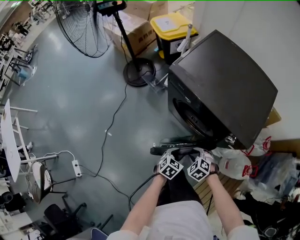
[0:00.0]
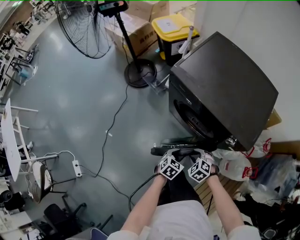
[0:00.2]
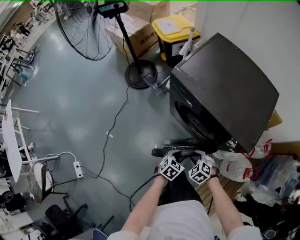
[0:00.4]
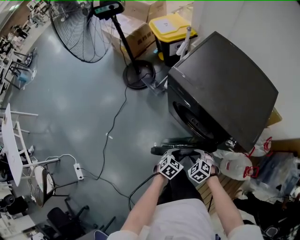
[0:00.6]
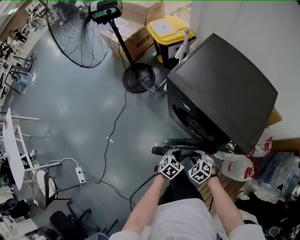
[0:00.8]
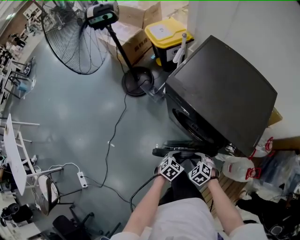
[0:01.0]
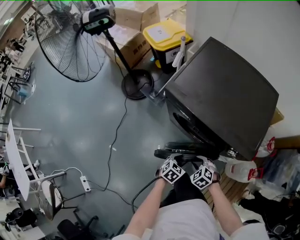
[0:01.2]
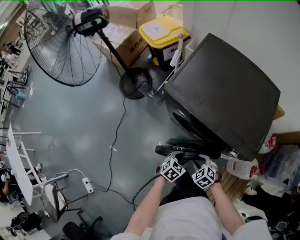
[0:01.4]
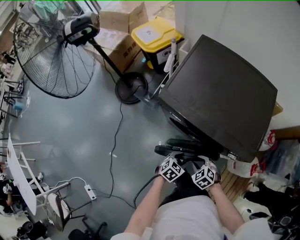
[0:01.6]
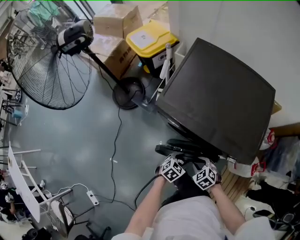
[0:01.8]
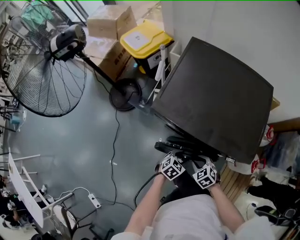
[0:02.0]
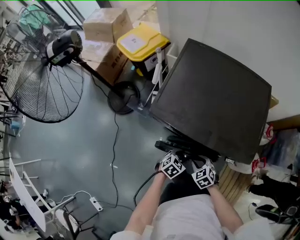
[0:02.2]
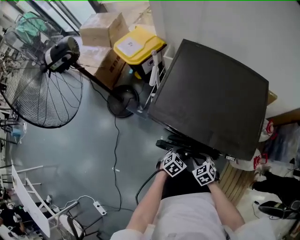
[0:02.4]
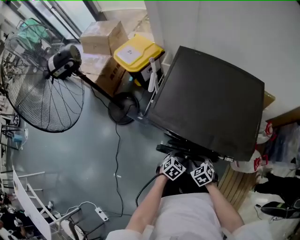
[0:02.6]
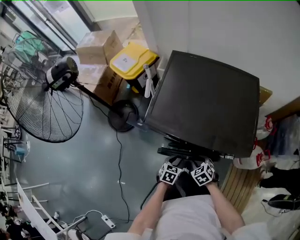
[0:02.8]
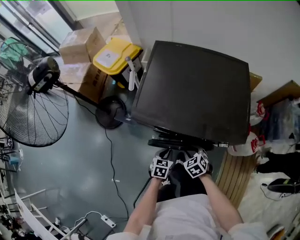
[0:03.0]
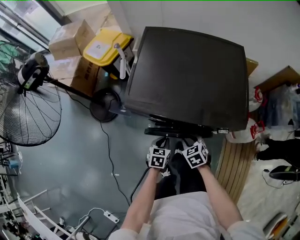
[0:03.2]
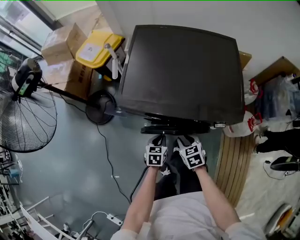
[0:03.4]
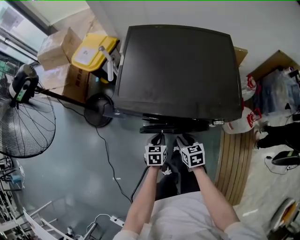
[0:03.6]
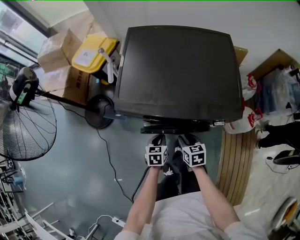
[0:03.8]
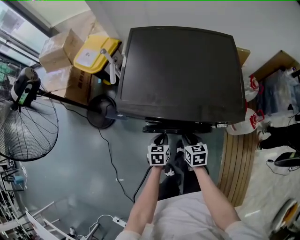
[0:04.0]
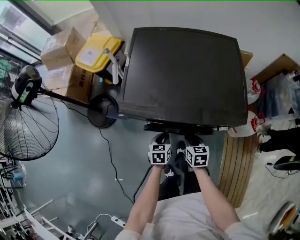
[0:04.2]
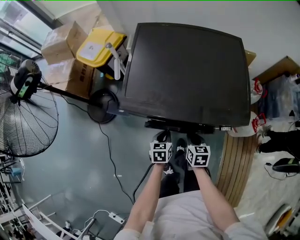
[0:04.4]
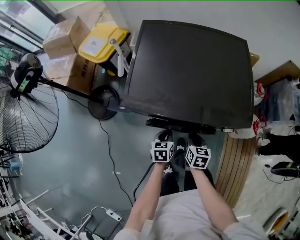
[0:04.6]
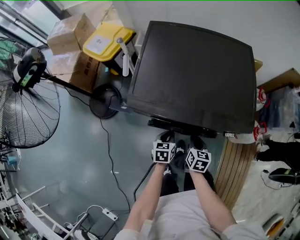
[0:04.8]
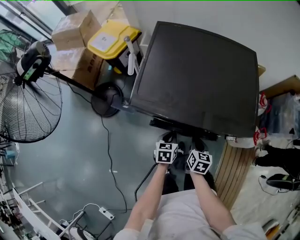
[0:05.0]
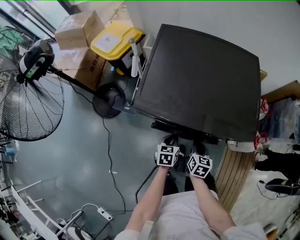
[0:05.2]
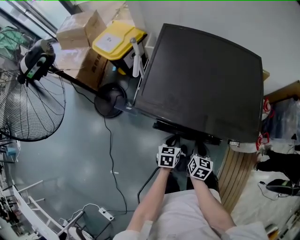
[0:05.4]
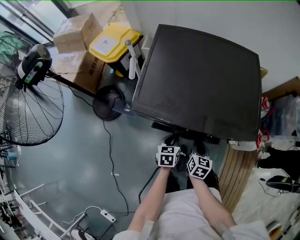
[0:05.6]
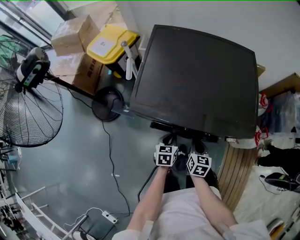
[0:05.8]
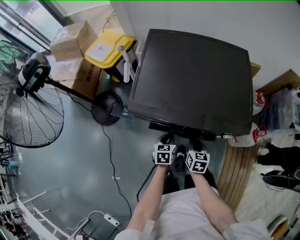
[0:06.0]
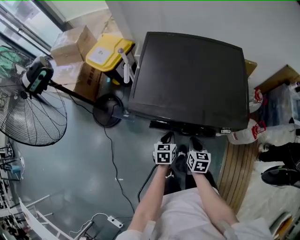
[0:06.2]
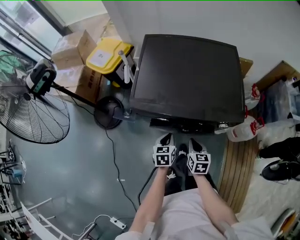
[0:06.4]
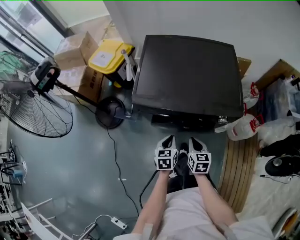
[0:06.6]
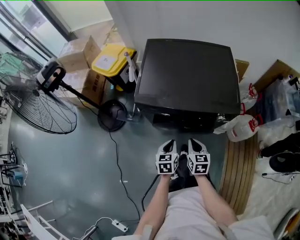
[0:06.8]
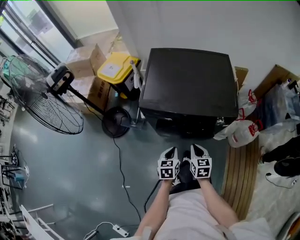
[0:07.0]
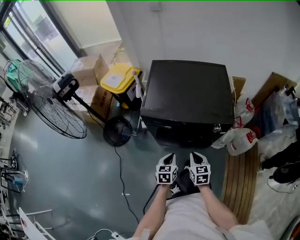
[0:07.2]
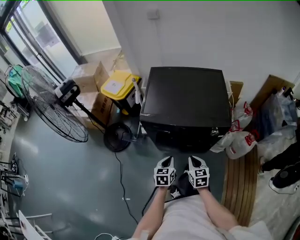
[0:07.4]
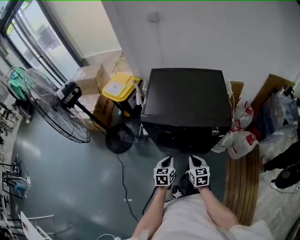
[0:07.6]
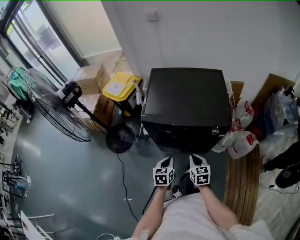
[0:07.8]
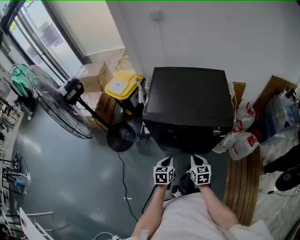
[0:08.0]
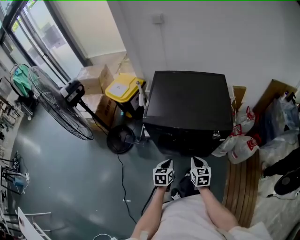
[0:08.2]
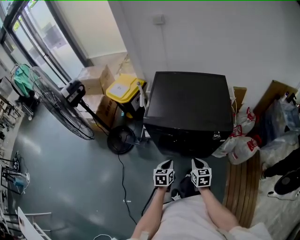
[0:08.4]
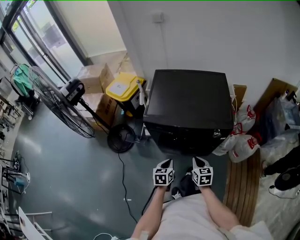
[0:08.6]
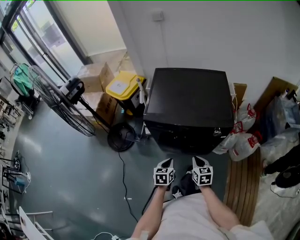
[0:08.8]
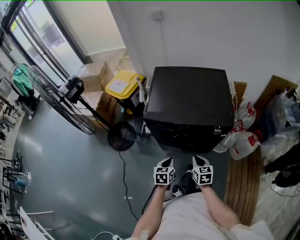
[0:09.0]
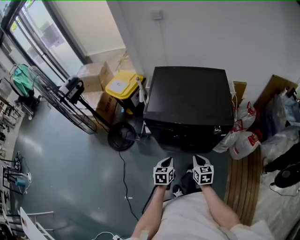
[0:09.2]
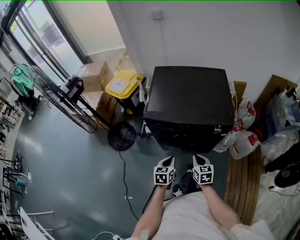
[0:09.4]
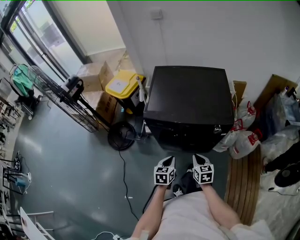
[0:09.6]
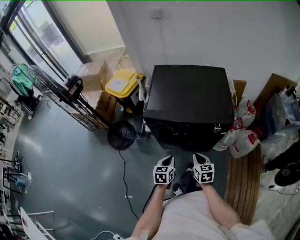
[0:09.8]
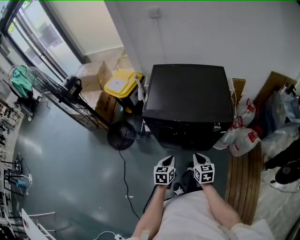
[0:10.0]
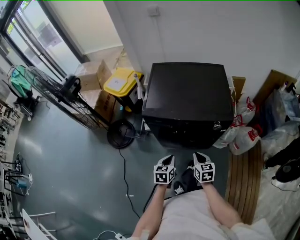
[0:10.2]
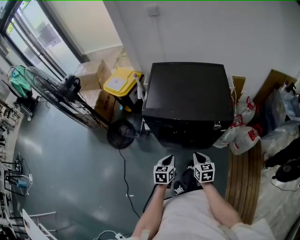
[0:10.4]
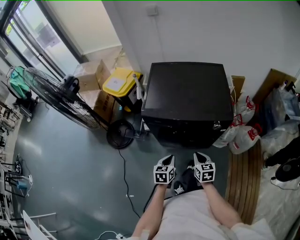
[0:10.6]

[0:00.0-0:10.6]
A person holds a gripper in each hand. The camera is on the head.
0:00.0 to 0:01.6: Both grippers move forward, about 10 cm. The right gripper rotates some 20 degrees.
0:01.6 to 0:03.0: The left gripper travels forward and to the left by some 10 cm, and closes its fingers. Meanwhile the right gripper moves forward, roughly 10 cm, and rotates some 30 degrees.
0:03.0 to 0:04.6: The right gripper rolls clockwise, seen from behind, by some 40 degrees, and closes.
0:04.6 to 0:06.0: The grippers make only small movements.
0:06.0 to 0:07.6: The right gripper heads backward and upward, covering approximately 20 cm. Meanwhile the left gripper is displaced upward and backward by roughly 20 cm.
0:07.6 to 0:09.0: There are only small adjustments of the grippers.
0:09.0 to 0:10.6: Both grippers stay put.

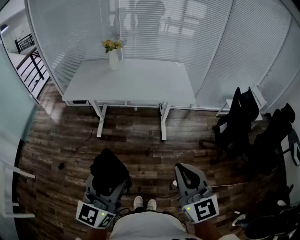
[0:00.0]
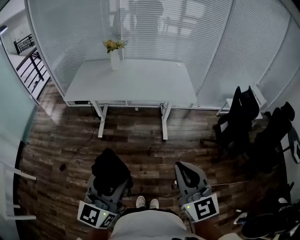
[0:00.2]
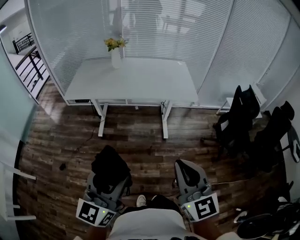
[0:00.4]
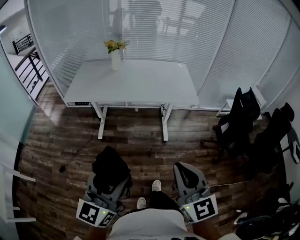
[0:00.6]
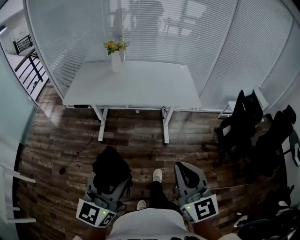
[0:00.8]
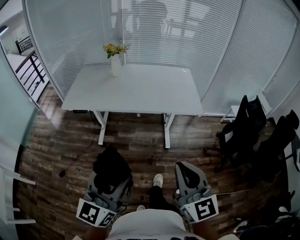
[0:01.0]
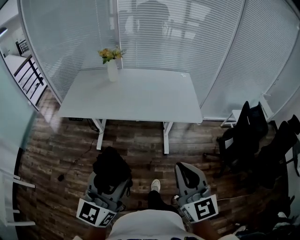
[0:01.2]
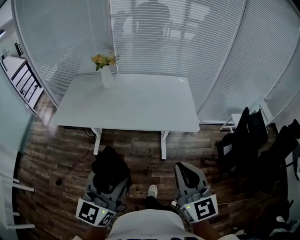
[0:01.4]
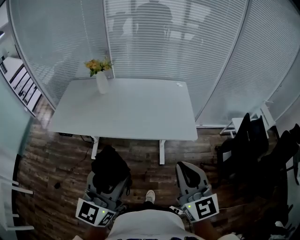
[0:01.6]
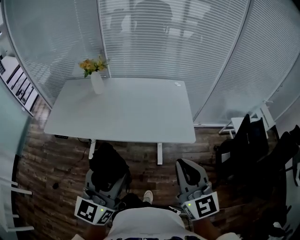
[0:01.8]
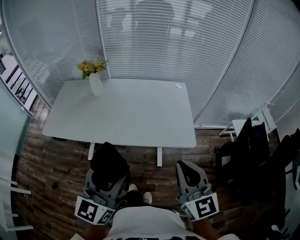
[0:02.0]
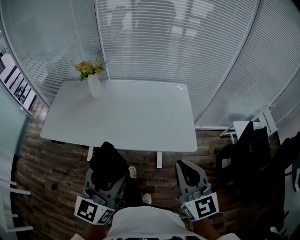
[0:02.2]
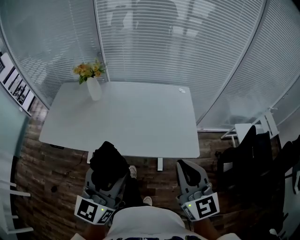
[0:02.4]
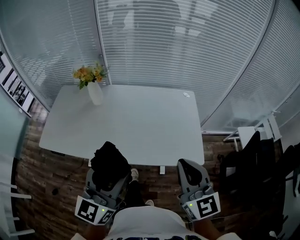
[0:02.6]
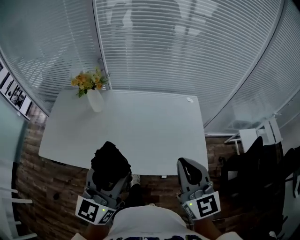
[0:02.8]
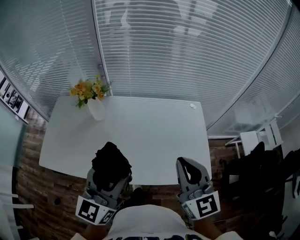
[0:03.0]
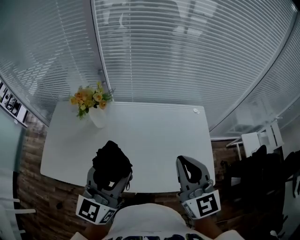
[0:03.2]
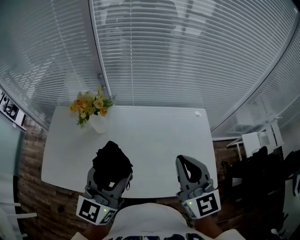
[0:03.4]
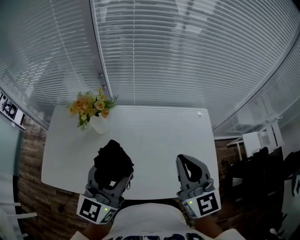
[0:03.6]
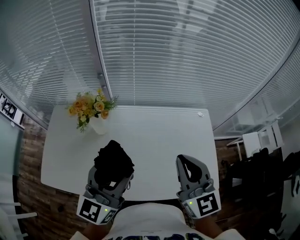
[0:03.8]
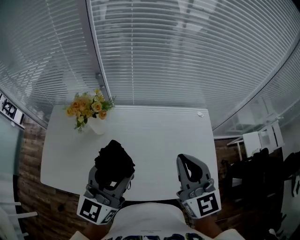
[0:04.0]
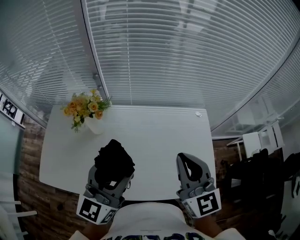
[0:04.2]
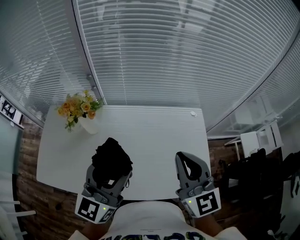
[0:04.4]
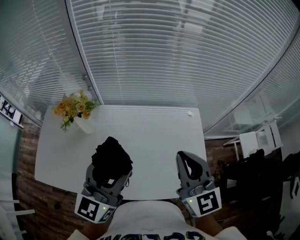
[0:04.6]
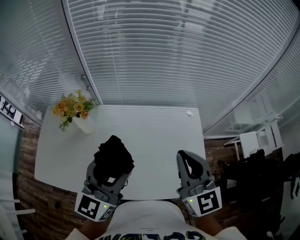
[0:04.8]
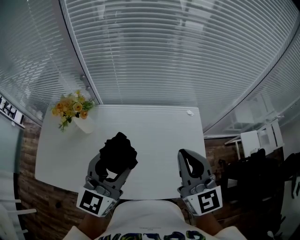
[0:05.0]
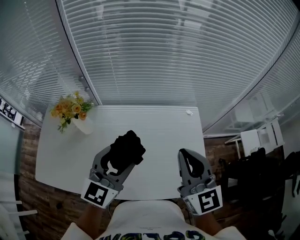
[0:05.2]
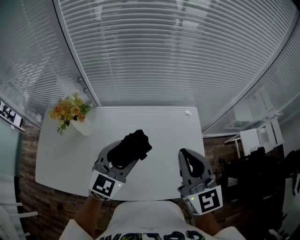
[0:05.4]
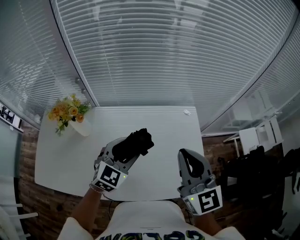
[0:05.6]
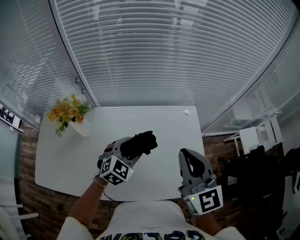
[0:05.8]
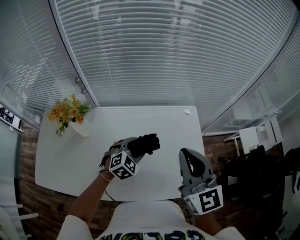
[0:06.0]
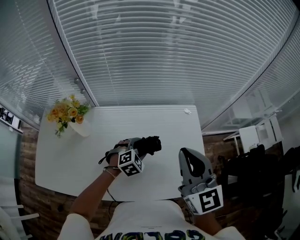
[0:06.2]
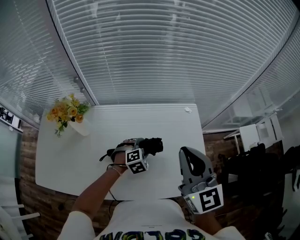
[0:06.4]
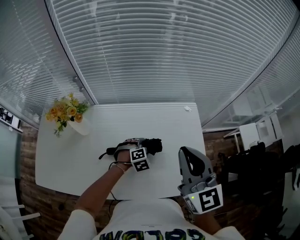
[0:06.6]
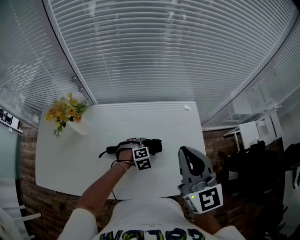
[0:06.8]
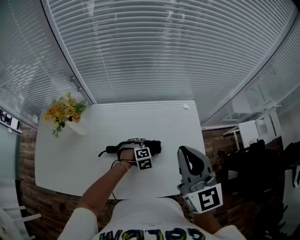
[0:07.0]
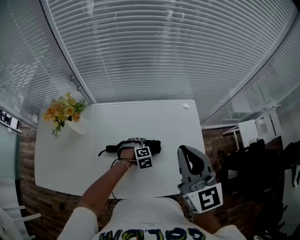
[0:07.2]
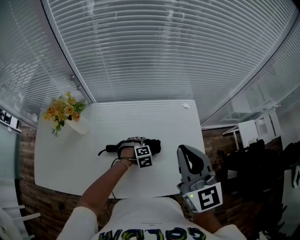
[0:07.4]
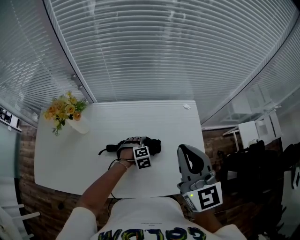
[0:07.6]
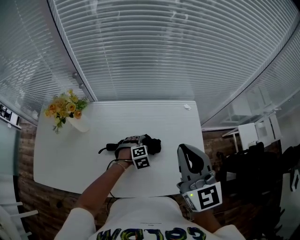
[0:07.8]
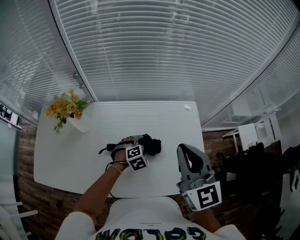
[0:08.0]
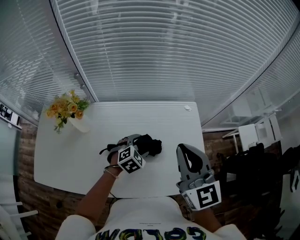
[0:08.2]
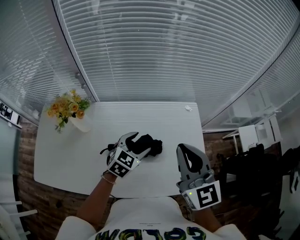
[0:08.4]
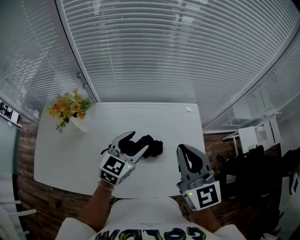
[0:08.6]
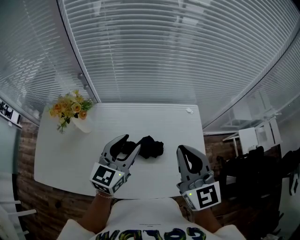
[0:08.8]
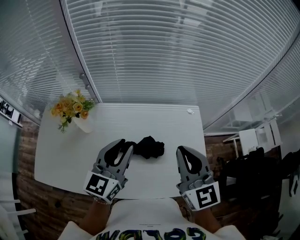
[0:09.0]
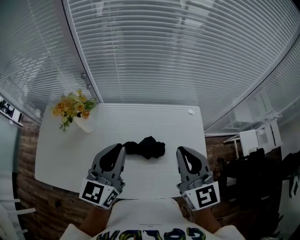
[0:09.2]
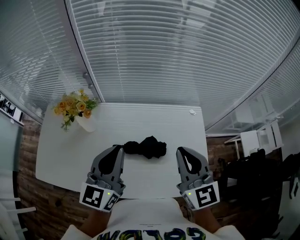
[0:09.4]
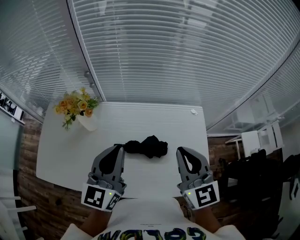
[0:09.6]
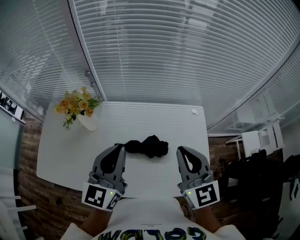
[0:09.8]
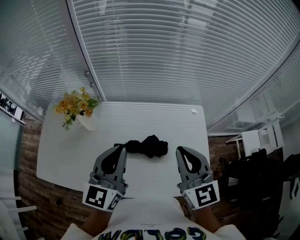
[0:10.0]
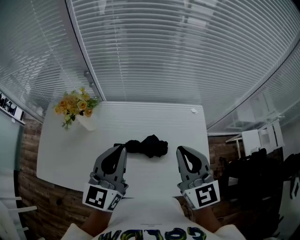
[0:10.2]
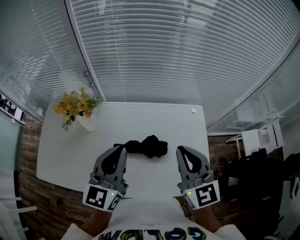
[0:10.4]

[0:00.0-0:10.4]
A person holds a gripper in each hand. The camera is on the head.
0:00.0 to 0:01.4: The two grippers go about 25 cm forward.
0:01.4 to 0:03.0: The two grippers travel together, forward, some 40 cm.
0:03.0 to 0:04.4: The grippers both shift forward by approximately 10 cm.
0:04.4 to 0:06.0: The right gripper goes some 5 cm to the right; the left gripper is displaced downward, to the right and forward by some 30 cm, and tips its fingers downward by some 50 degrees.
0:06.0 to 0:07.4: The left gripper goes about 15 cm downward, and swivels approximately 30 degrees.
0:07.4 to 0:09.0: The left gripper shifts approximately 35 cm upward, tips its fingers upward by about 70 degrees, and closes up.
0:09.0 to 0:10.4: There are only small adjustments of the grippers.

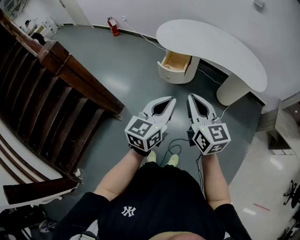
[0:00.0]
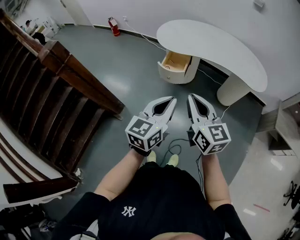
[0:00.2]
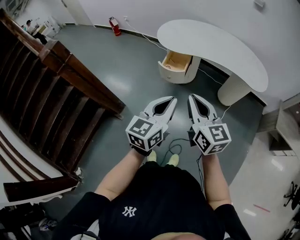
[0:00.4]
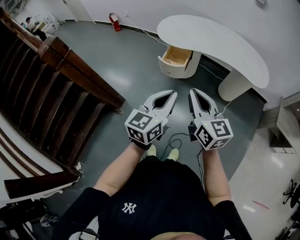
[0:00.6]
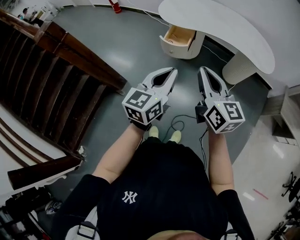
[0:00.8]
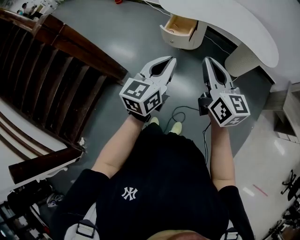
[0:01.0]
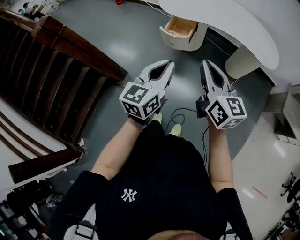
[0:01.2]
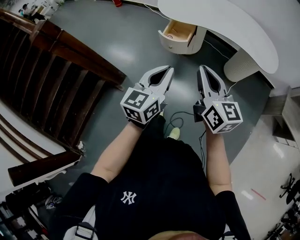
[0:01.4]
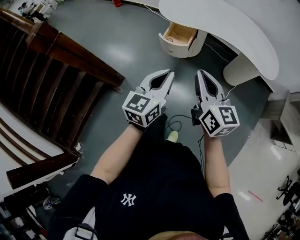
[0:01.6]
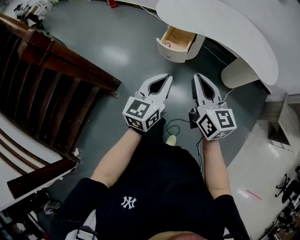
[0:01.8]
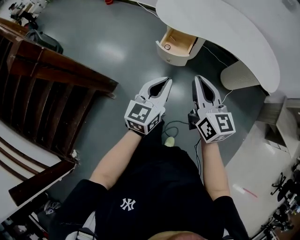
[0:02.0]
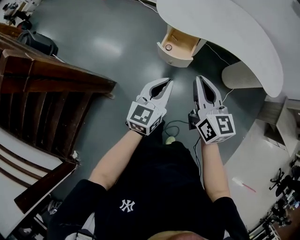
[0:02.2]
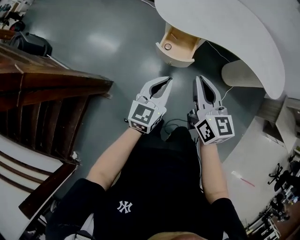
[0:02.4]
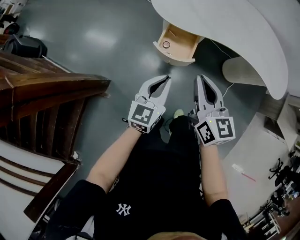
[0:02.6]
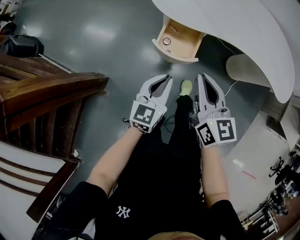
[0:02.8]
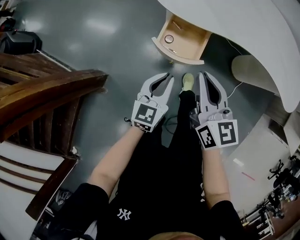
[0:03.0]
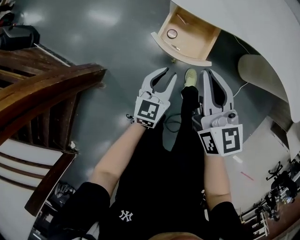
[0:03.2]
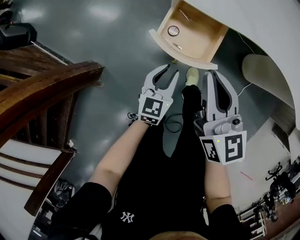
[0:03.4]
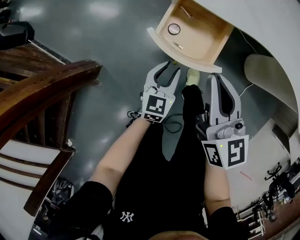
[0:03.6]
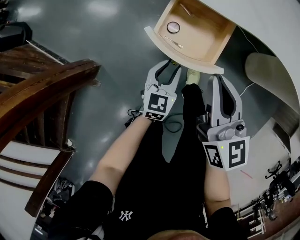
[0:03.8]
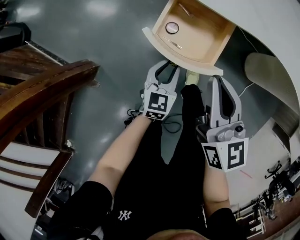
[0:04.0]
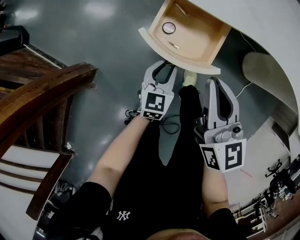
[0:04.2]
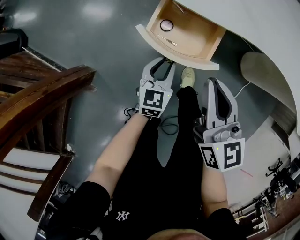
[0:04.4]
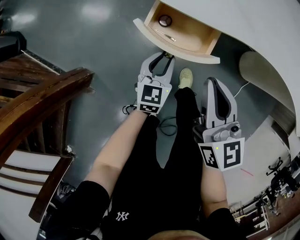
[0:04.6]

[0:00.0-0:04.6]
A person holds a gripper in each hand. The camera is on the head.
0:00.0 to 0:01.6: The left gripper moves forward and downward, about 10 cm. The right gripper travels forward by about 5 cm.
0:01.6 to 0:03.0: The right gripper travels forward and downward by about 40 cm; the left gripper shifts approximately 40 cm downward and forward.
0:03.0 to 0:04.6: The left gripper travels downward and forward by roughly 25 cm. The right gripper shifts about 15 cm downward and forward.
